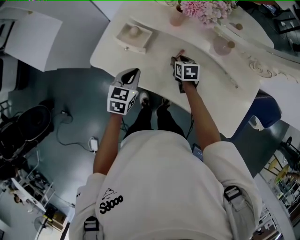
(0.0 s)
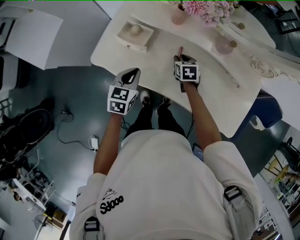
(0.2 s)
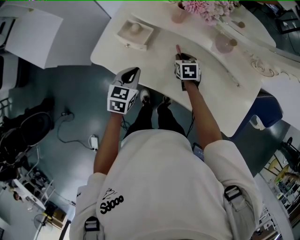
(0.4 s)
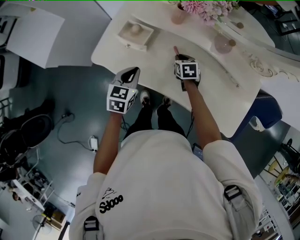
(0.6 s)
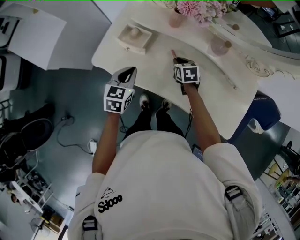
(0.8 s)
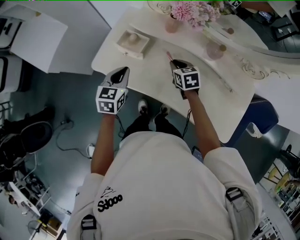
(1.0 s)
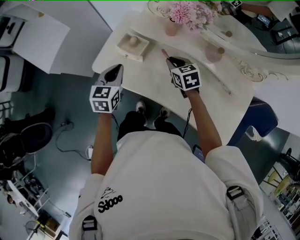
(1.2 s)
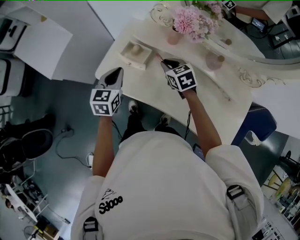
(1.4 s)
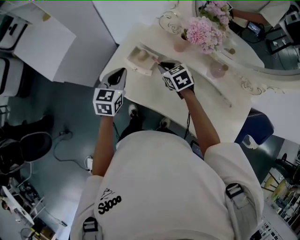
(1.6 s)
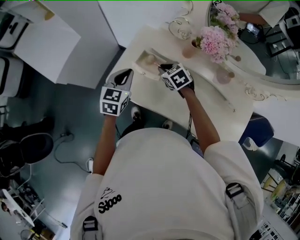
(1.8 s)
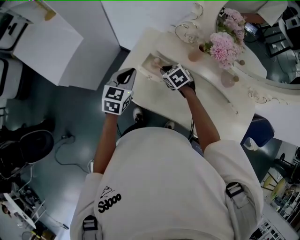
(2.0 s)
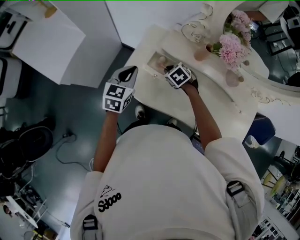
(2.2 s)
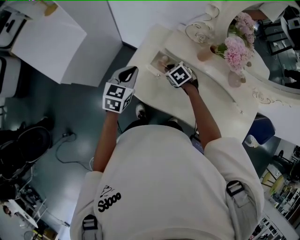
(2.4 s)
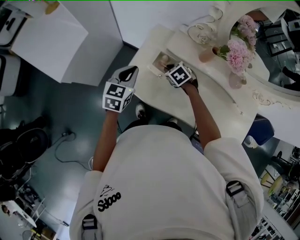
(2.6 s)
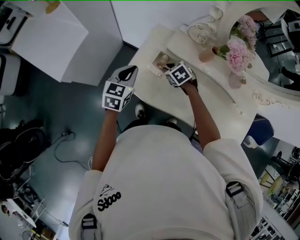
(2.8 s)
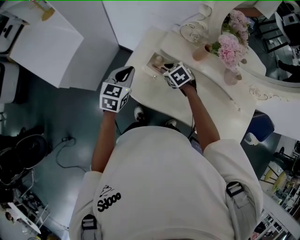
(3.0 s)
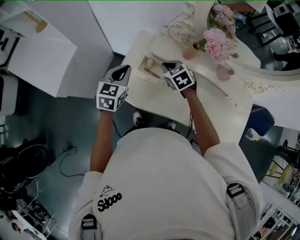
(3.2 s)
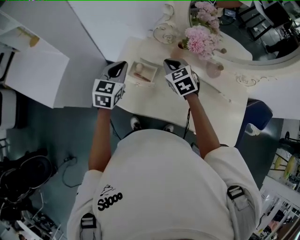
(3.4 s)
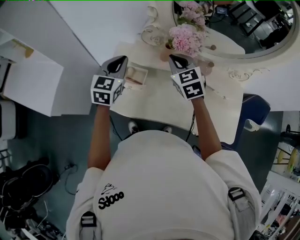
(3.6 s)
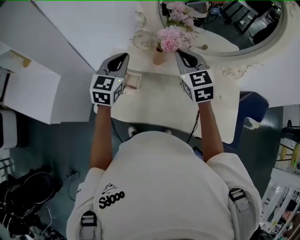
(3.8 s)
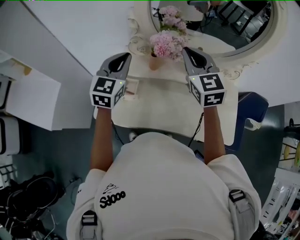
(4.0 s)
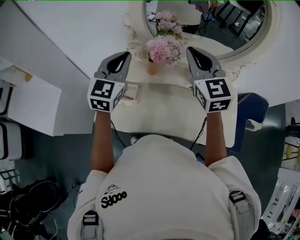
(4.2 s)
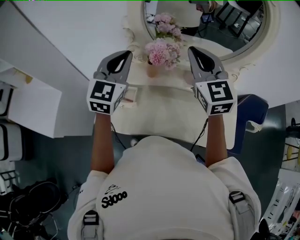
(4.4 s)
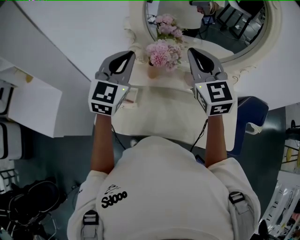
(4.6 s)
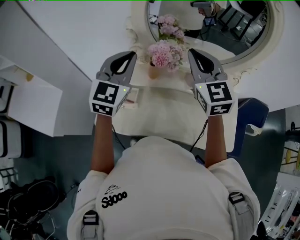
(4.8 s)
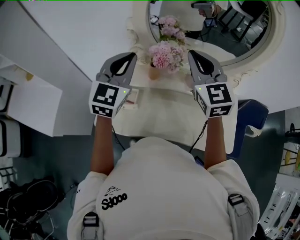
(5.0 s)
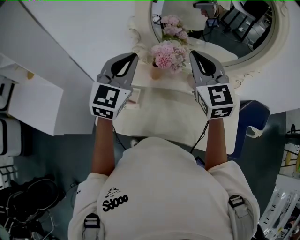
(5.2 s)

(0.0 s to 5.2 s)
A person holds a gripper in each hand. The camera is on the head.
0.0 s - 1.8 s: The right gripper heads to the left, upward and forward, covering some 20 cm, changes its angle by approximately 40 degrees, and closes. The left gripper moves to the left, forward and upward, some 15 cm.
1.8 s - 3.4 s: The right gripper is displaced upward by approximately 10 cm, and turns by some 20 degrees. The left gripper travels forward and upward by about 10 cm, and goes to the left and returns, some 5 cm each way.
3.4 s - 5.2 s: Both grippers travel together upward and to the right, about 25 cm. The right gripper points its fingers approximately 30 degrees further upward; the left gripper turns by roughly 30 degrees.

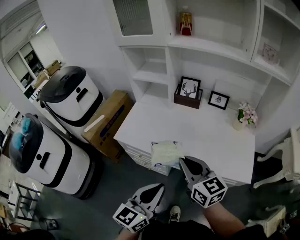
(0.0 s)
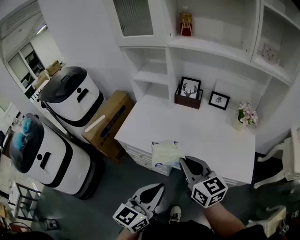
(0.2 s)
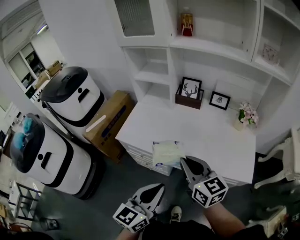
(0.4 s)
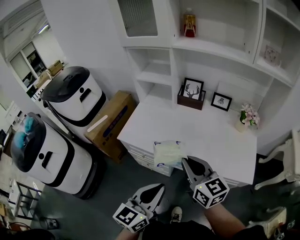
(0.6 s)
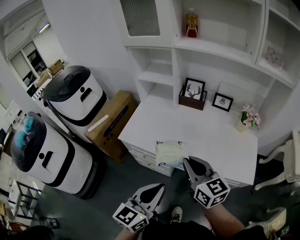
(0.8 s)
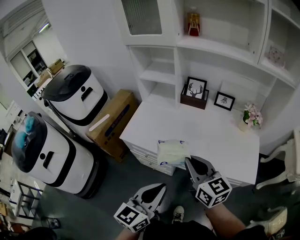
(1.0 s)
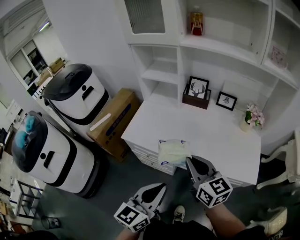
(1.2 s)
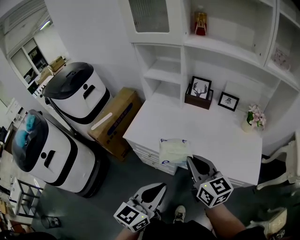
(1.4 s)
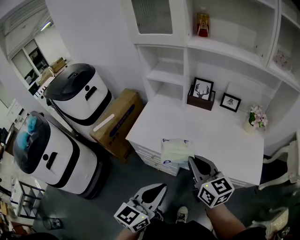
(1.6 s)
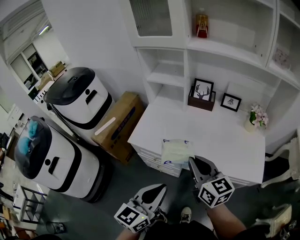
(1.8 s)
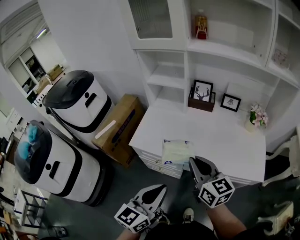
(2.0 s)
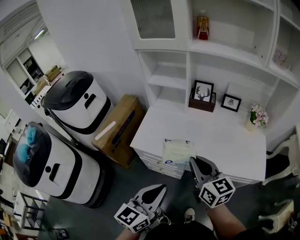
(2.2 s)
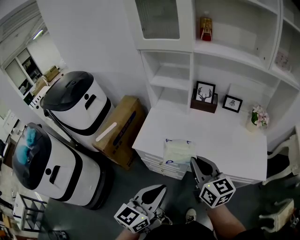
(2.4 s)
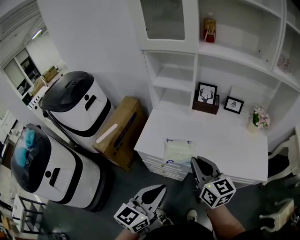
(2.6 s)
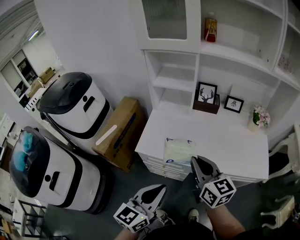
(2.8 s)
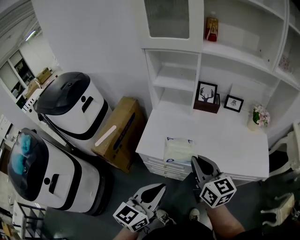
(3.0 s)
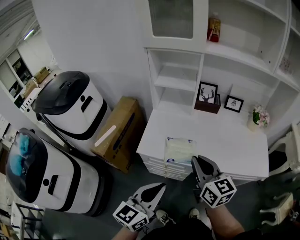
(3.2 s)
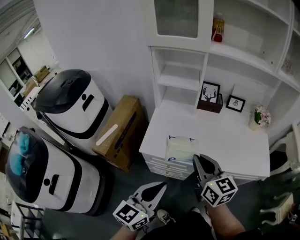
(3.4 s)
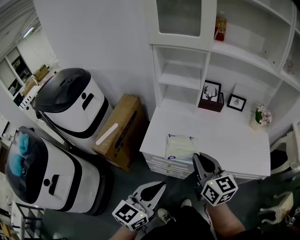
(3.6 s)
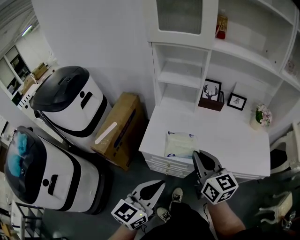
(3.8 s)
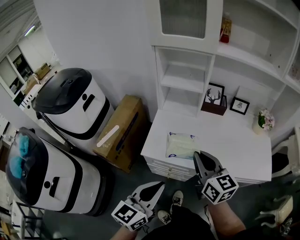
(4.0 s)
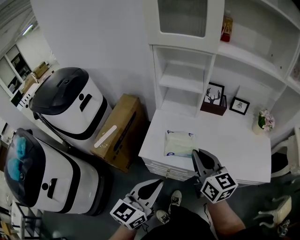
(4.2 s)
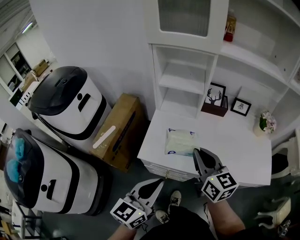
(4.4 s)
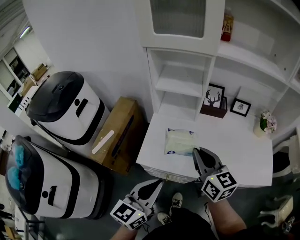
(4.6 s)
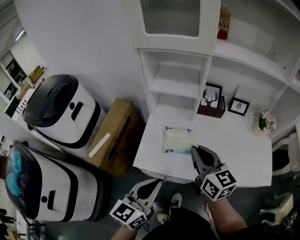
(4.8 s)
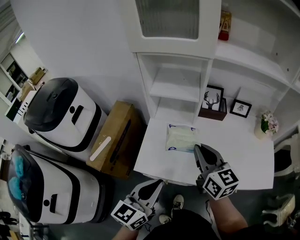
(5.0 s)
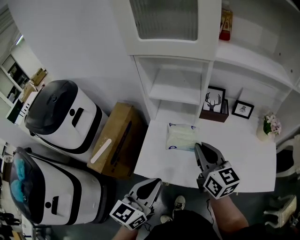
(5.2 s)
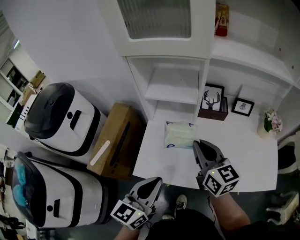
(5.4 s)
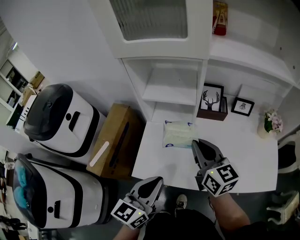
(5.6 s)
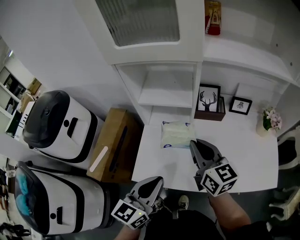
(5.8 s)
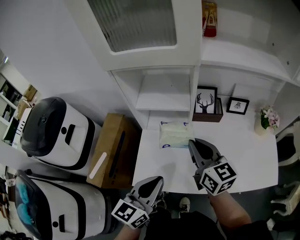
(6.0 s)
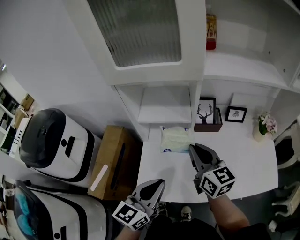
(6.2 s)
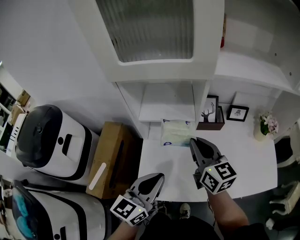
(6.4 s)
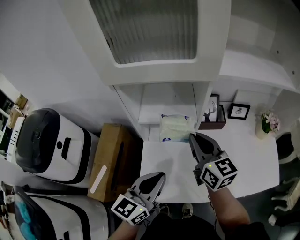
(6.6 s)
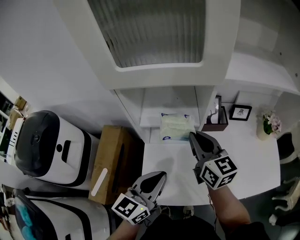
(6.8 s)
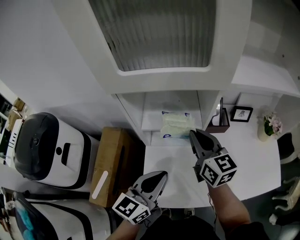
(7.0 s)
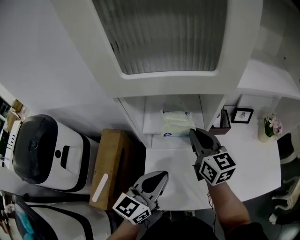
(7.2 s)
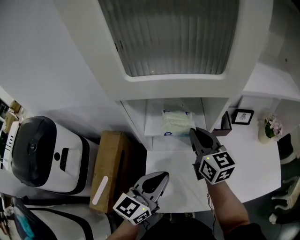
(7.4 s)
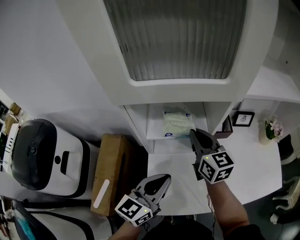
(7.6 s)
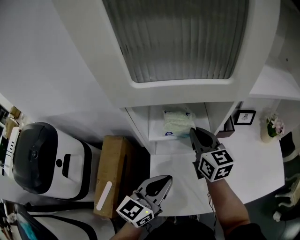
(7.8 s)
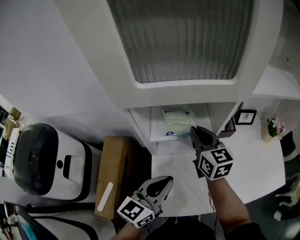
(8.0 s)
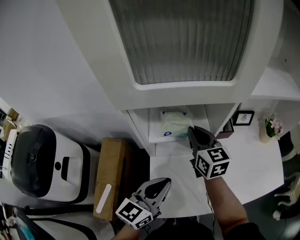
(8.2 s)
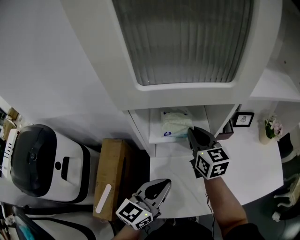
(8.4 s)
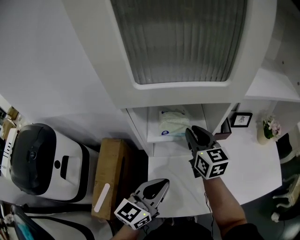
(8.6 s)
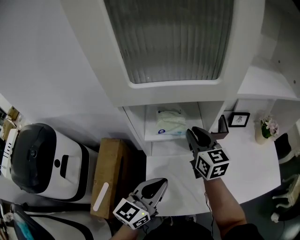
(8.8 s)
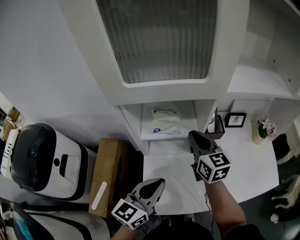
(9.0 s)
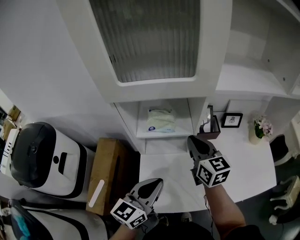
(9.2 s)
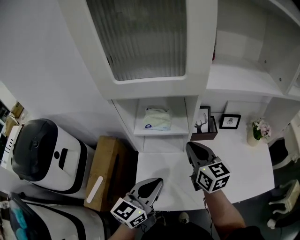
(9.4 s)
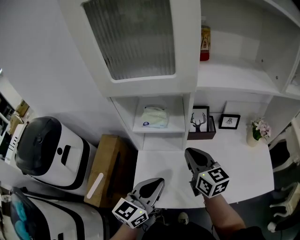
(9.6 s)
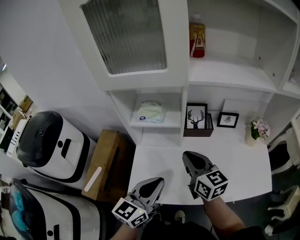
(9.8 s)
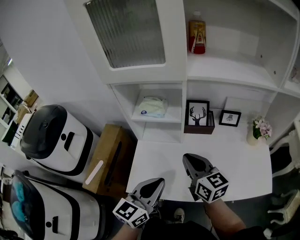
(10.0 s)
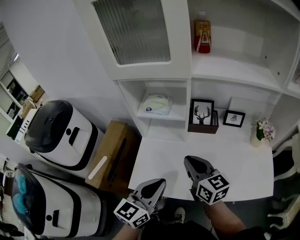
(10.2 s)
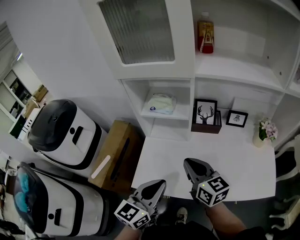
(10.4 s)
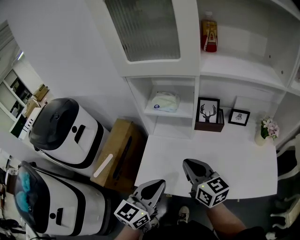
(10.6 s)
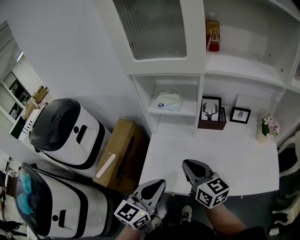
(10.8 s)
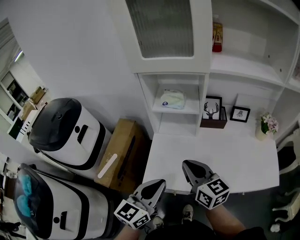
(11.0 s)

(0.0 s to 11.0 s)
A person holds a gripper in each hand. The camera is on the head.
0.0 s - 1.6 s: The left gripper heads to the left, covering roughly 5 cm.
1.6 s - 3.2 s: Both grippers move to the left, approximately 15 cm.
3.2 s - 4.8 s: The grippers both shift forward by approximately 15 cm.
4.8 s - 6.2 s: Both grippers travel together forward, some 15 cm.
6.2 s - 7.8 s: Both grippers travel together forward and to the left, approximately 15 cm.
7.8 s - 9.4 s: The left gripper is displaced to the right and backward by roughly 10 cm, while the right gripper travels backward and to the right by about 10 cm.
9.4 s - 11.0 s: The grippers both shift backward by approximately 15 cm.

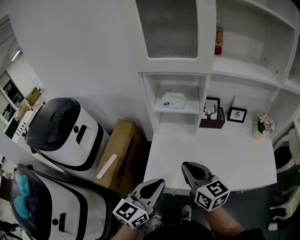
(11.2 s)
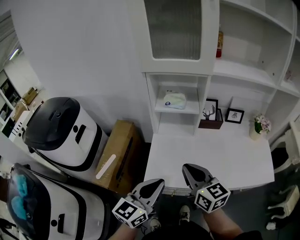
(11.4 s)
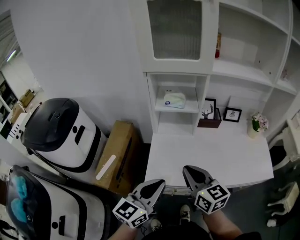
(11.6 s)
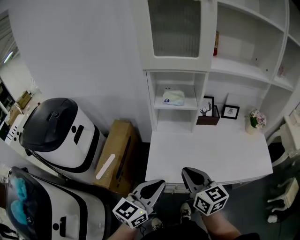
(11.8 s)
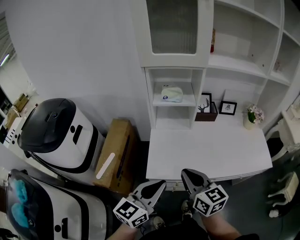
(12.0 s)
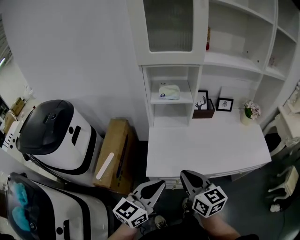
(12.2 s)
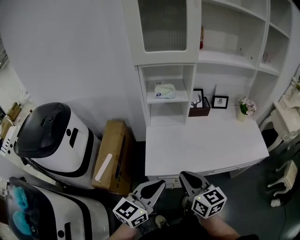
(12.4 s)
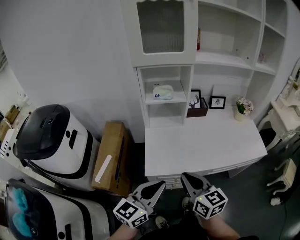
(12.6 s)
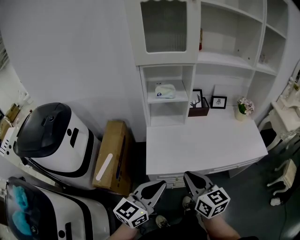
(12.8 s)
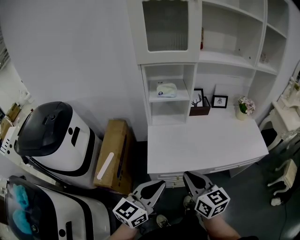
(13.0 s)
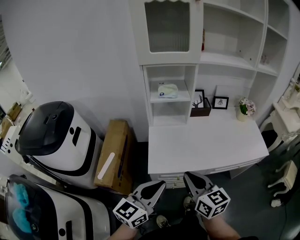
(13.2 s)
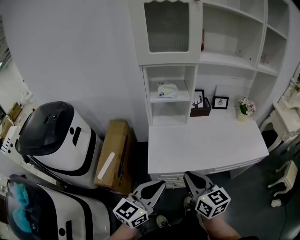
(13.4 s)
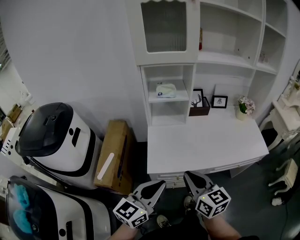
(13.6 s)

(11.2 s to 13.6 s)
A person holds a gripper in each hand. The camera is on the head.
11.2 s - 12.4 s: Both grippers move backward, about 10 cm.
12.4 s - 13.6 s: The grippers move only a little.

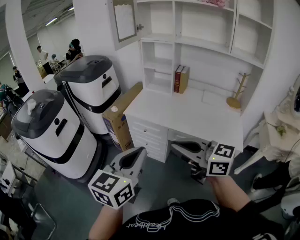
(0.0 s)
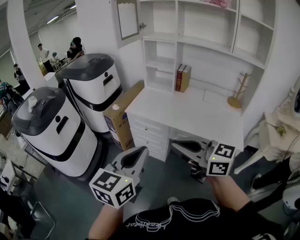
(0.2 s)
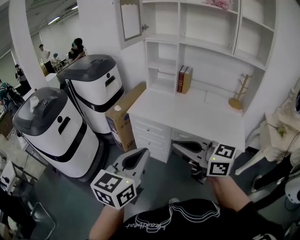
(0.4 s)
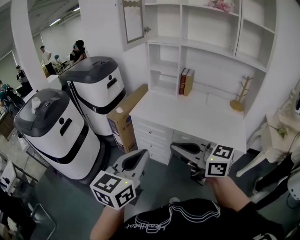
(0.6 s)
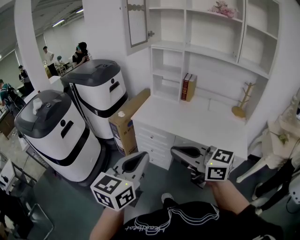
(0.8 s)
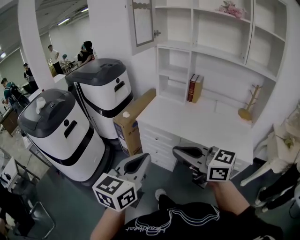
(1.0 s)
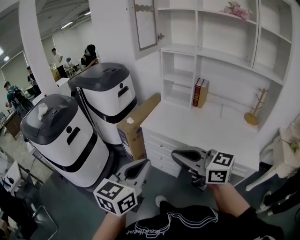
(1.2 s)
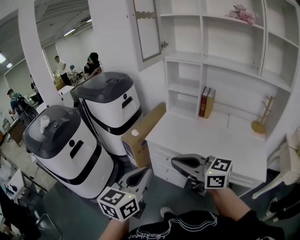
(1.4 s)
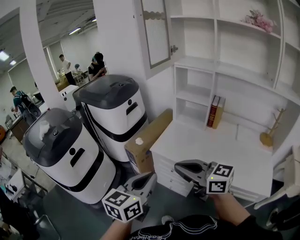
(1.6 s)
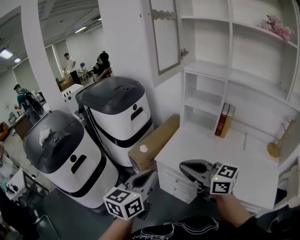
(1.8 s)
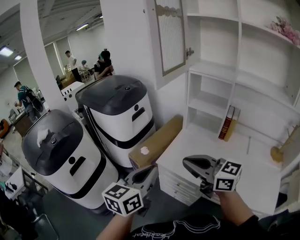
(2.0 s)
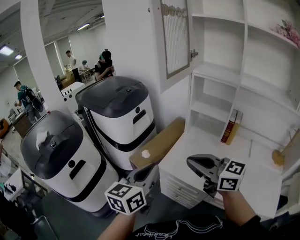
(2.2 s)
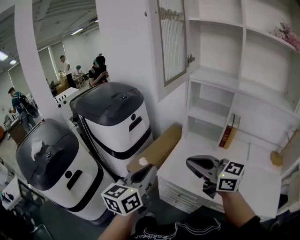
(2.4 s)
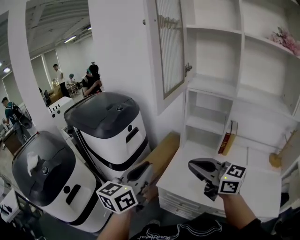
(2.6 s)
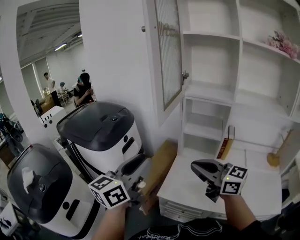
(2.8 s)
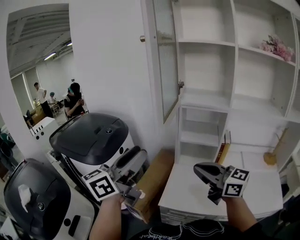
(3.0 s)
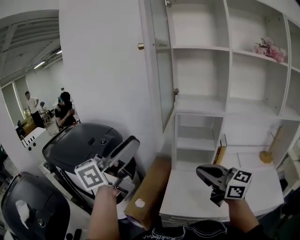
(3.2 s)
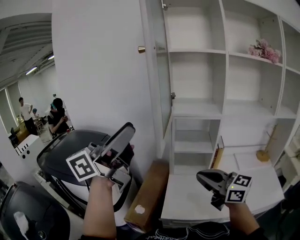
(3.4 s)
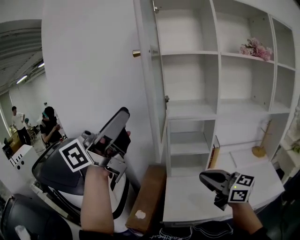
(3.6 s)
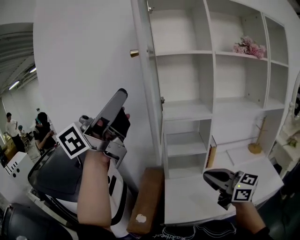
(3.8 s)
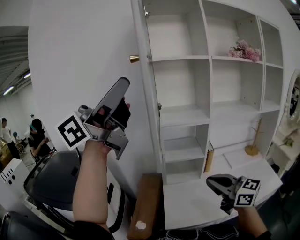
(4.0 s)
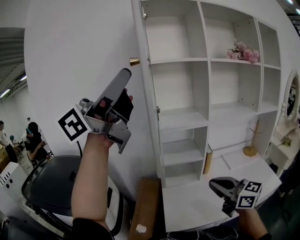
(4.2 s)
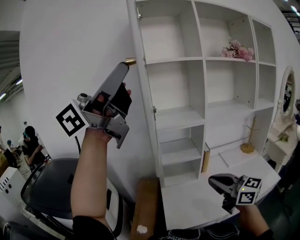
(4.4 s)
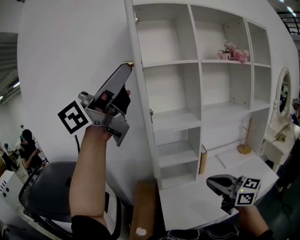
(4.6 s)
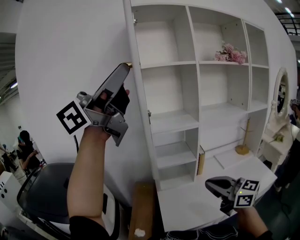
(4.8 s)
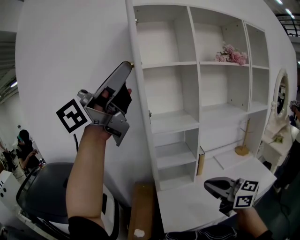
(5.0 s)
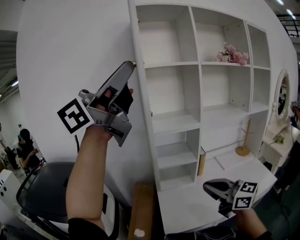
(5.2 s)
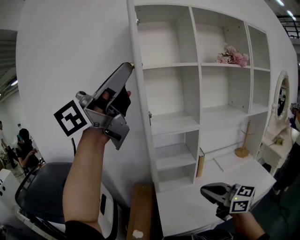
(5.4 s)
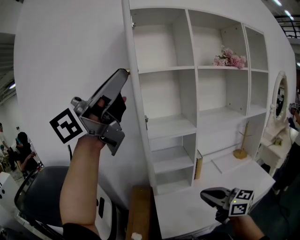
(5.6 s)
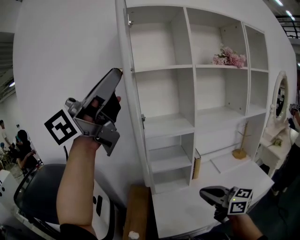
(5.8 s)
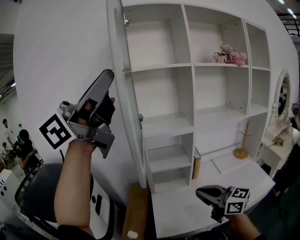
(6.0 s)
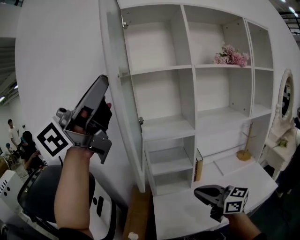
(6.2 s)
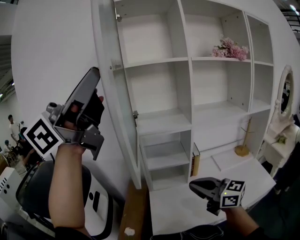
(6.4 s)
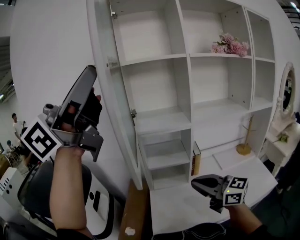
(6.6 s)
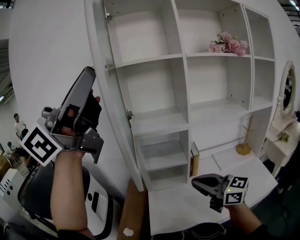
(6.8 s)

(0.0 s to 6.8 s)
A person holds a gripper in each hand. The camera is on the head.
0.0 s - 1.4 s: The two grippers go about 15 cm forward and to the left.
1.4 s - 2.8 s: The two grippers go about 35 cm forward. The left gripper swivels some 20 degrees, and opens.
2.8 s - 4.0 s: The left gripper heads upward, covering approximately 30 cm, and swivels some 60 degrees. The right gripper swivels approximately 30 degrees.
4.0 s - 5.4 s: The left gripper moves approximately 5 cm, and closes.
5.4 s - 6.8 s: The right gripper is displaced forward by roughly 5 cm.
